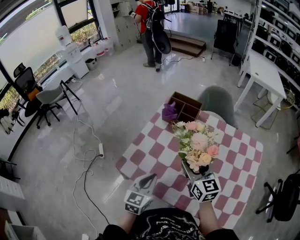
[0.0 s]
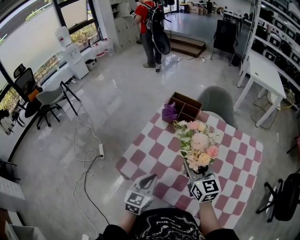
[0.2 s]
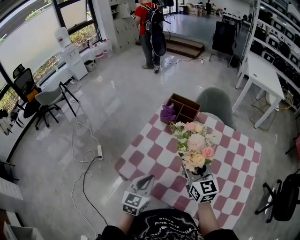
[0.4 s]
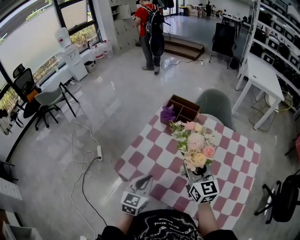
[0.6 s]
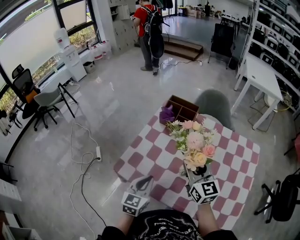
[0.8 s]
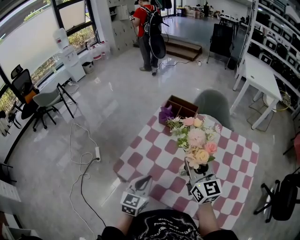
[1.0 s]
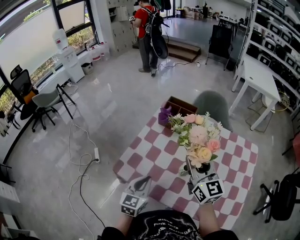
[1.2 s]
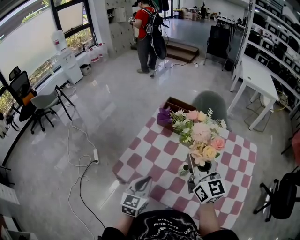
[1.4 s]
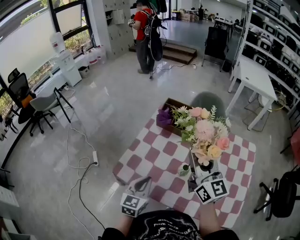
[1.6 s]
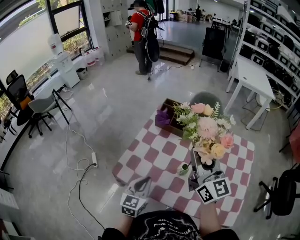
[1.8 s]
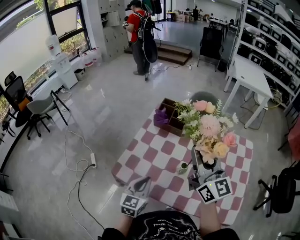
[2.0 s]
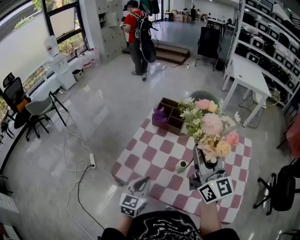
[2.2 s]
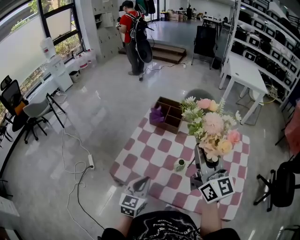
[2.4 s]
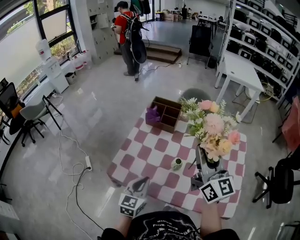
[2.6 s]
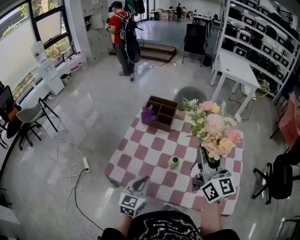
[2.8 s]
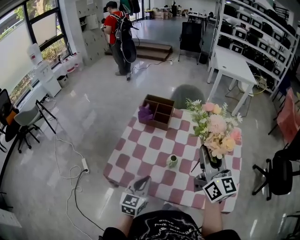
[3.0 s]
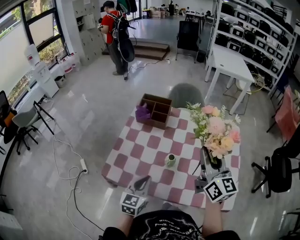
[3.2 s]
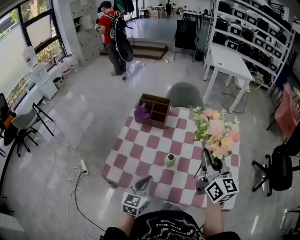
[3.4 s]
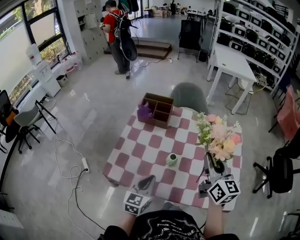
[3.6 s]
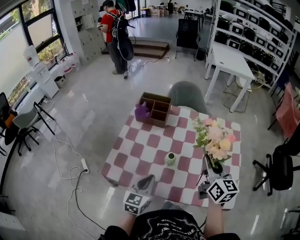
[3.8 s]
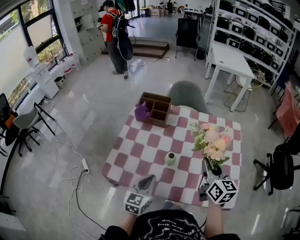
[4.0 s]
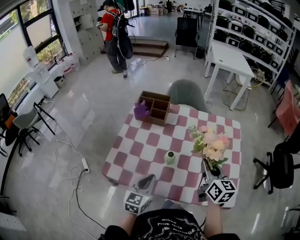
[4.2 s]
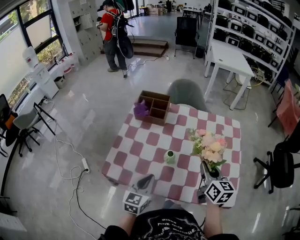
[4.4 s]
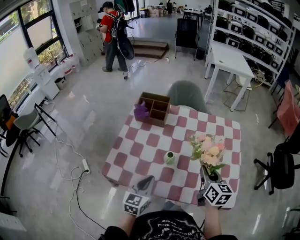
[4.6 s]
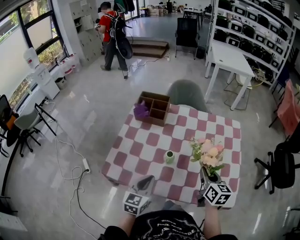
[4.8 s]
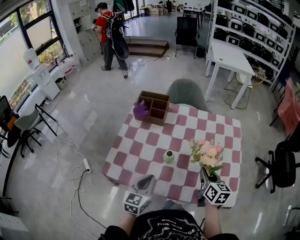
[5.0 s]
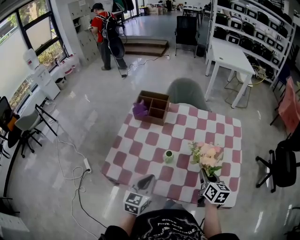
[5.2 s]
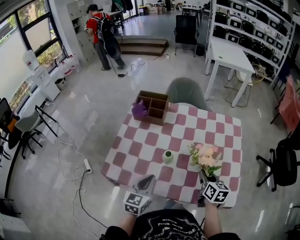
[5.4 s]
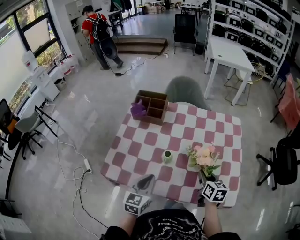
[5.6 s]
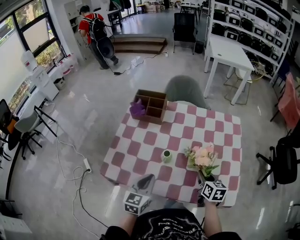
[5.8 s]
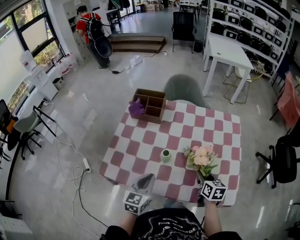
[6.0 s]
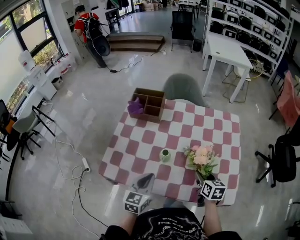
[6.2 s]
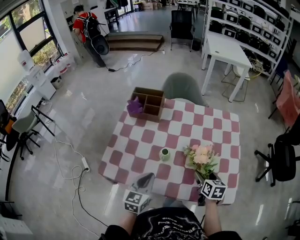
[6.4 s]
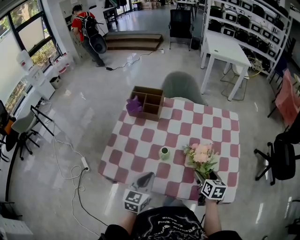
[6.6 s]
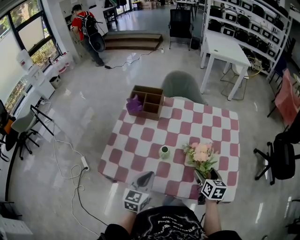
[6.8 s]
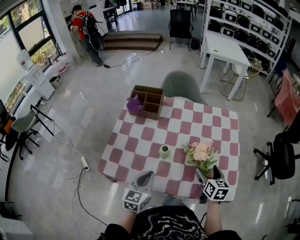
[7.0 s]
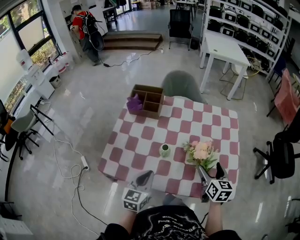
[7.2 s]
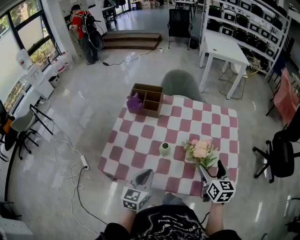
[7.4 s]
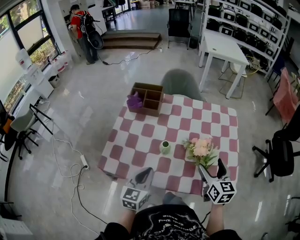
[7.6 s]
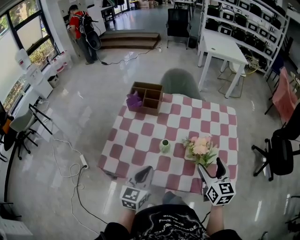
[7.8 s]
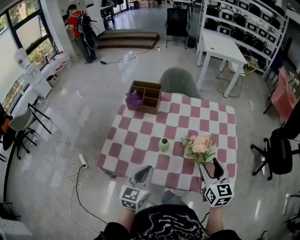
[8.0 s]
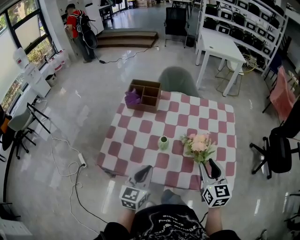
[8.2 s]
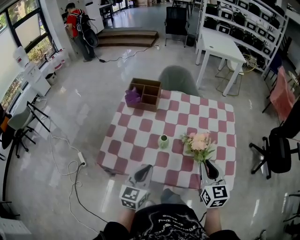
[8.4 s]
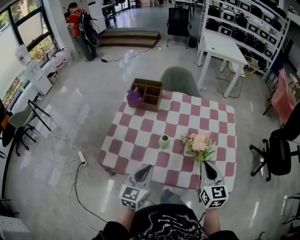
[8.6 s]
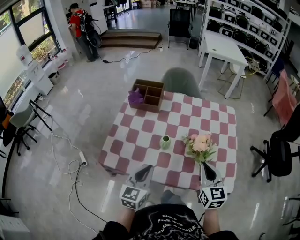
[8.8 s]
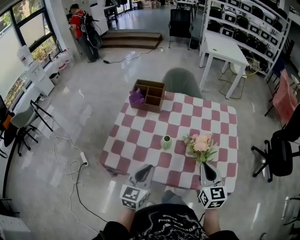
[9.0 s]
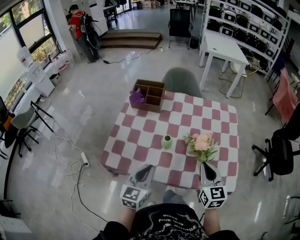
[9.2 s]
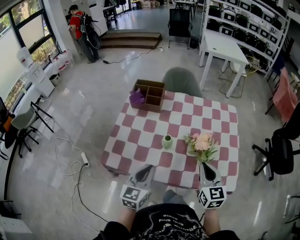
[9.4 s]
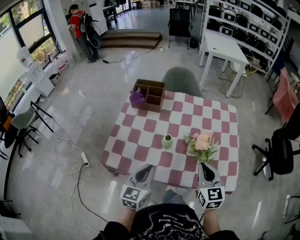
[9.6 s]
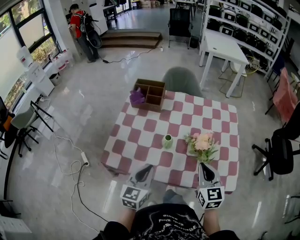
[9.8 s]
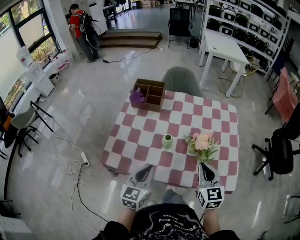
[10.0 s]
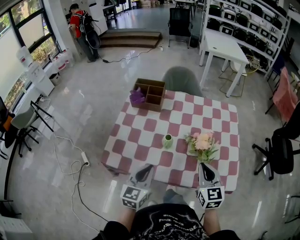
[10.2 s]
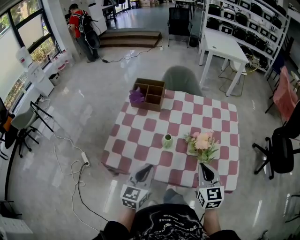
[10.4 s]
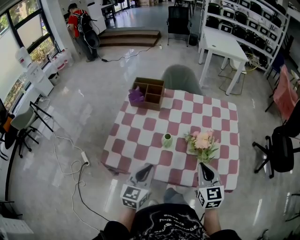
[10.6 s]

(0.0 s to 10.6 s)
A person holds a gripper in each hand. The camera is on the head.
0.0 s - 1.6 s: The right gripper is displaced upward by about 15 cm, and closes its fingers.
1.6 s - 3.0 s: The right gripper shifts approximately 10 cm to the right.
3.0 s - 4.6 s: The right gripper goes roughly 20 cm downward and to the right, and turns by roughly 30 degrees.
4.6 s - 6.0 s: The right gripper goes some 10 cm downward.
6.0 s - 7.6 s: The right gripper is displaced upward by about 10 cm, rotates approximately 20 degrees, and opens.
7.6 s - 9.0 s: The right gripper shifts by about 5 cm, and closes up.
9.0 s - 10.6 s: The grippers make only small movements.

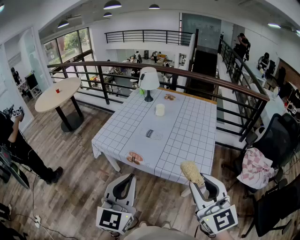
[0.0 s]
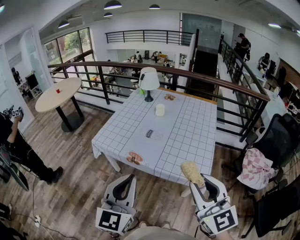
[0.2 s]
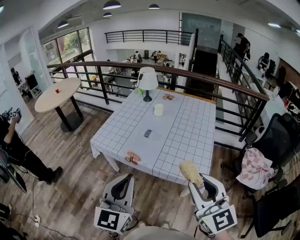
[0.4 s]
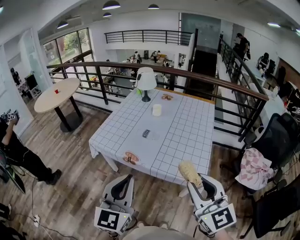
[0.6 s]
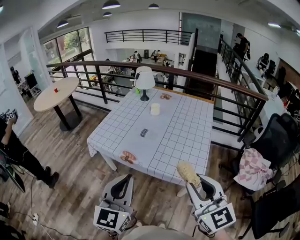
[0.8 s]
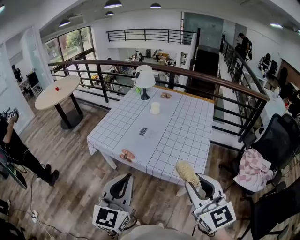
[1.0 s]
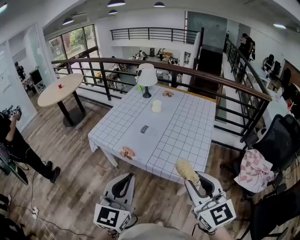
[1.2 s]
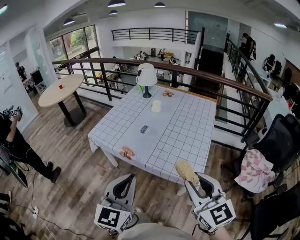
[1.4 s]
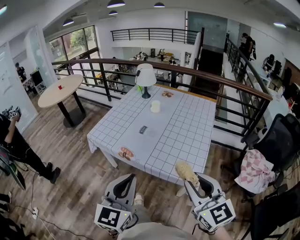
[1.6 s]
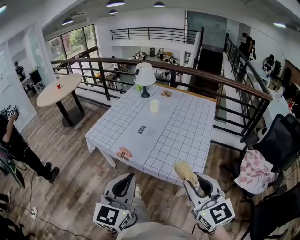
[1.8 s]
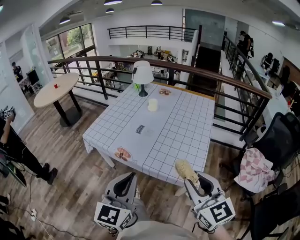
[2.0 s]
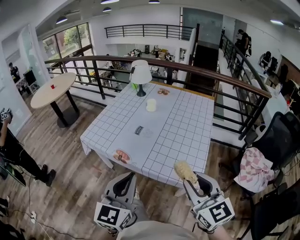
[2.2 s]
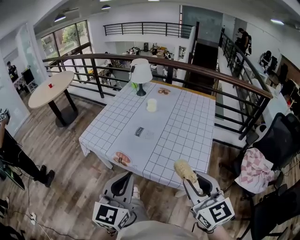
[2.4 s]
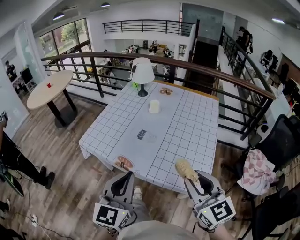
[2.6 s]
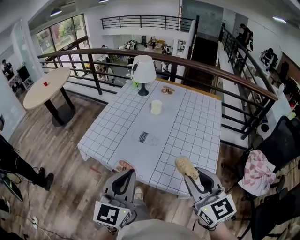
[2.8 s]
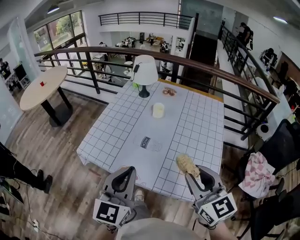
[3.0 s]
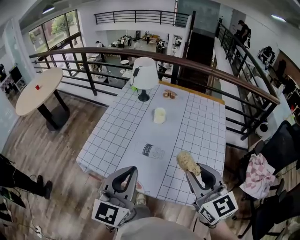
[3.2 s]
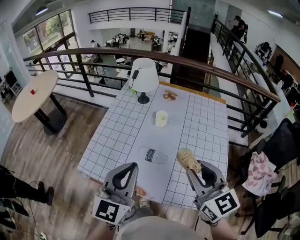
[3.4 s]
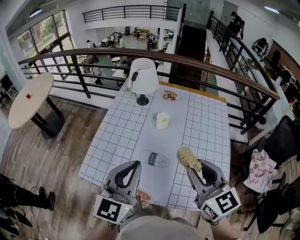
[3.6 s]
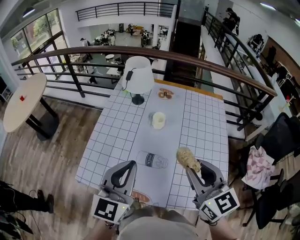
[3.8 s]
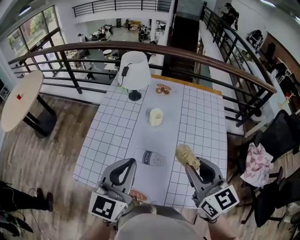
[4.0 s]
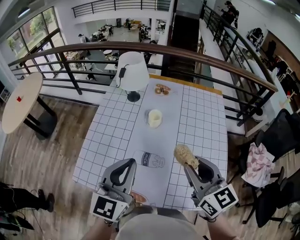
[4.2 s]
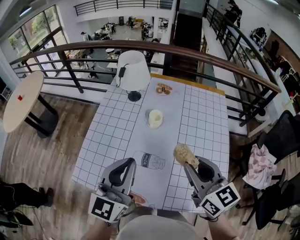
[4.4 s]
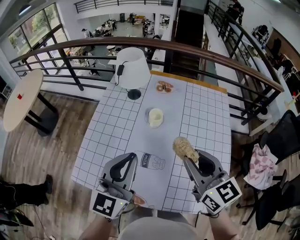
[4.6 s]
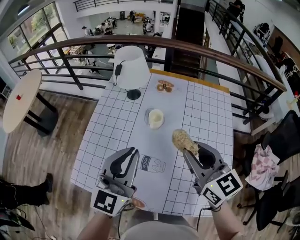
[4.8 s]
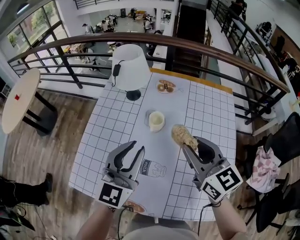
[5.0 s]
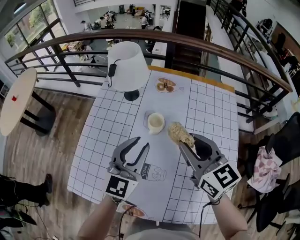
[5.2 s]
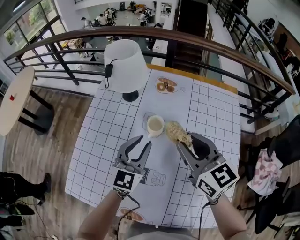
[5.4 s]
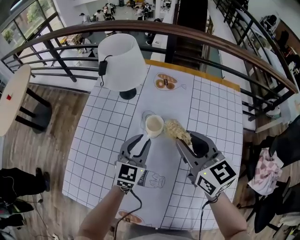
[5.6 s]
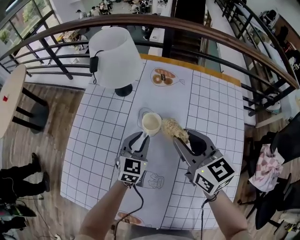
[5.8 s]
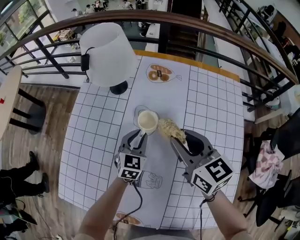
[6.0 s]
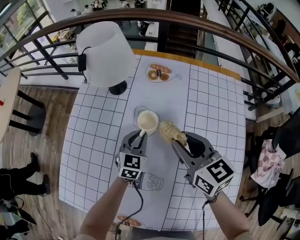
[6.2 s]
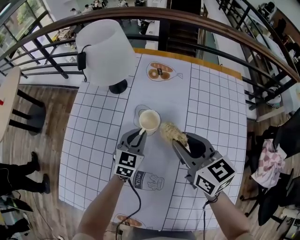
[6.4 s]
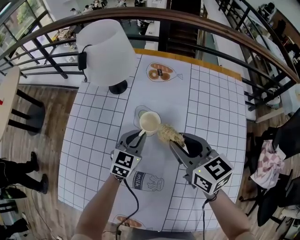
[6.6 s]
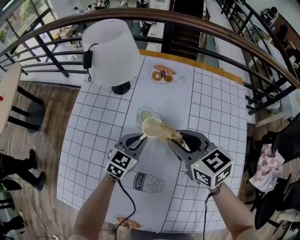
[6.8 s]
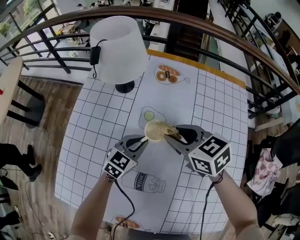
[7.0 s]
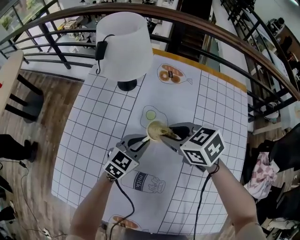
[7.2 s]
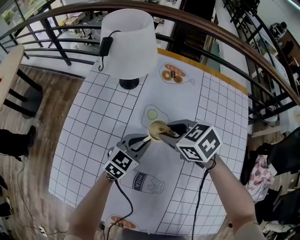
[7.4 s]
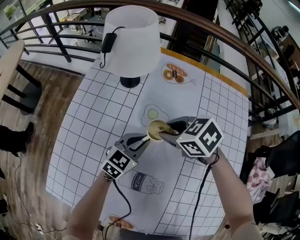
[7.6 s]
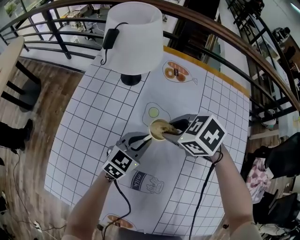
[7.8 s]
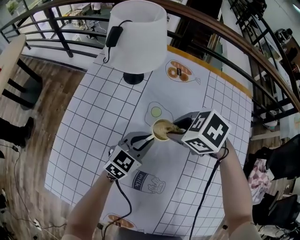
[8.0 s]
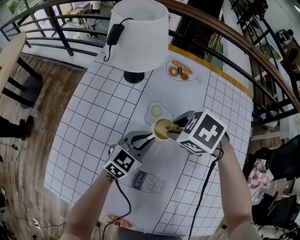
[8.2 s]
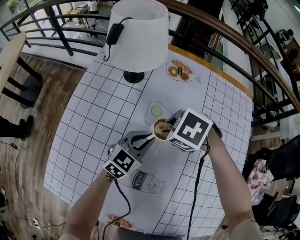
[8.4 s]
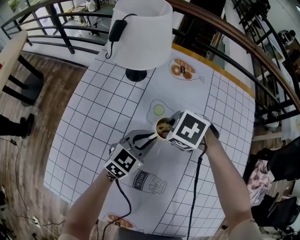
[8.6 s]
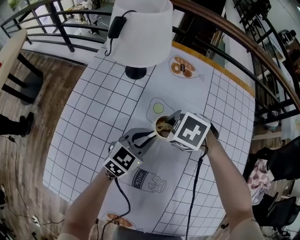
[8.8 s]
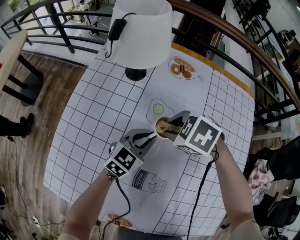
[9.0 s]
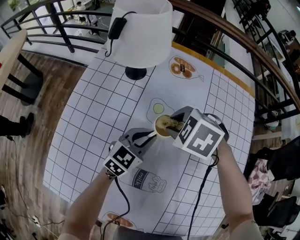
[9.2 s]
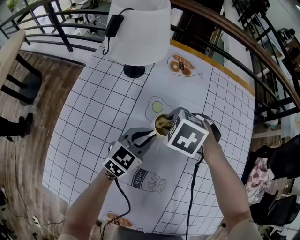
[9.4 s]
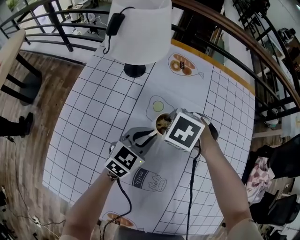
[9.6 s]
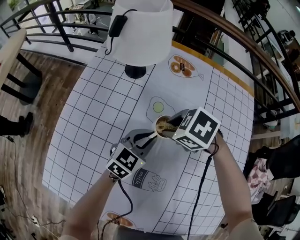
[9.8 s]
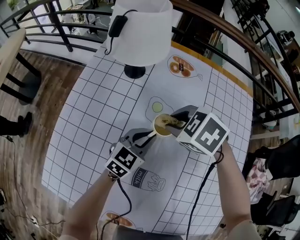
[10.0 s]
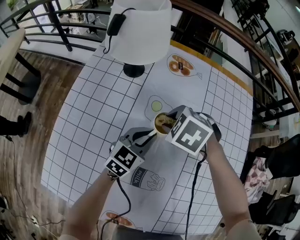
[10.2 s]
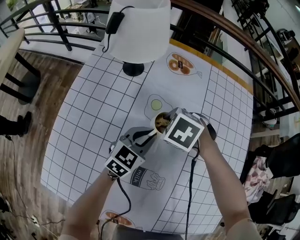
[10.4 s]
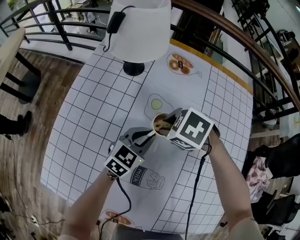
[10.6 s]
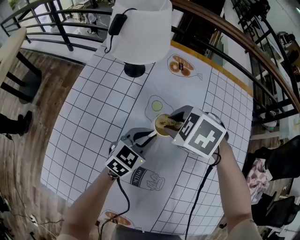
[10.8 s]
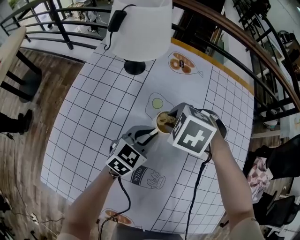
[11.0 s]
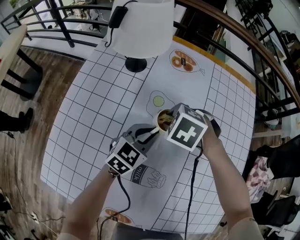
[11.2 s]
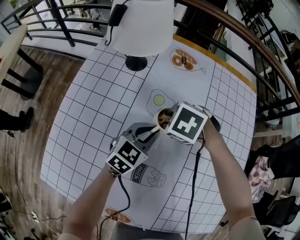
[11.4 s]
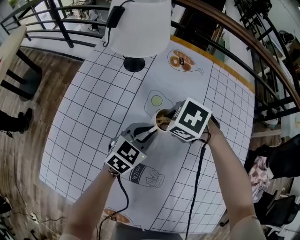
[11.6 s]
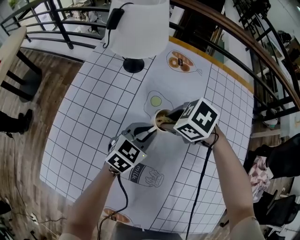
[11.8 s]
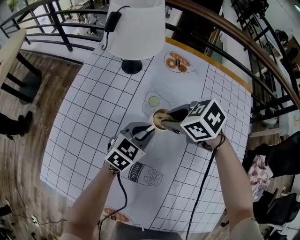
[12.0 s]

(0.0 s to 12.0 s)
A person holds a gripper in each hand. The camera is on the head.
0.0 s - 1.6 s: The left gripper travels to the right by some 10 cm; the right gripper goes about 10 cm to the right and downward.
1.6 s - 3.0 s: The left gripper shifts approximately 25 cm forward. The right gripper shifts roughly 25 cm forward and to the left.
3.0 s - 4.4 s: Both grippers travel together forward, roughly 20 cm.
4.4 s - 6.0 s: The left gripper is displaced downward and forward by about 40 cm, and angles its fingers downward, by approximately 30 degrees, while the right gripper travels forward and downward by some 30 cm.
6.0 s - 7.6 s: The right gripper is displaced downward and to the left by some 15 cm, and angles its fingers downward, by approximately 40 degrees. Meanwhile the left gripper changes its angle by roughly 20 degrees.
7.6 s - 9.0 s: The right gripper rotates some 20 degrees.
9.0 s - 10.4 s: The right gripper goes up and down, approximately 5 cm each way, reversing 2 times.
10.4 s - 12.0 s: The right gripper goes up and down, approximately 5 cm each way, reversing 2 times, and rotates roughly 30 degrees.

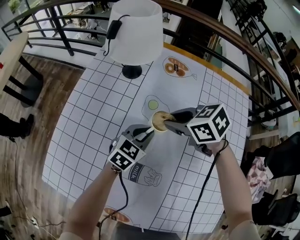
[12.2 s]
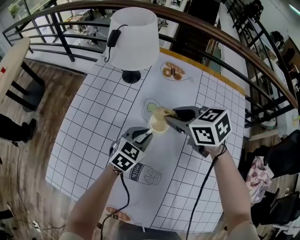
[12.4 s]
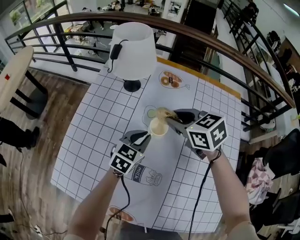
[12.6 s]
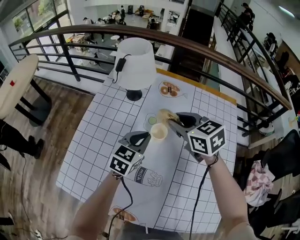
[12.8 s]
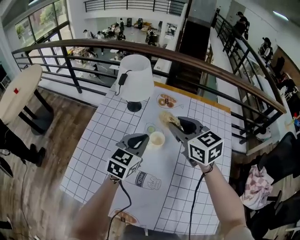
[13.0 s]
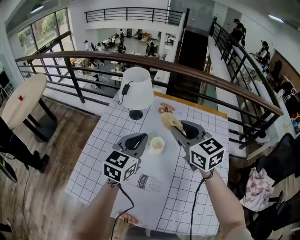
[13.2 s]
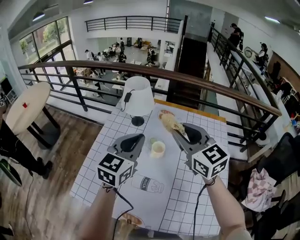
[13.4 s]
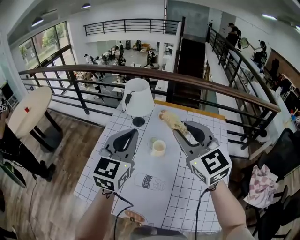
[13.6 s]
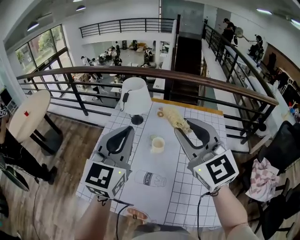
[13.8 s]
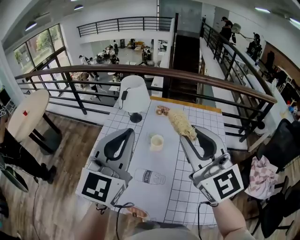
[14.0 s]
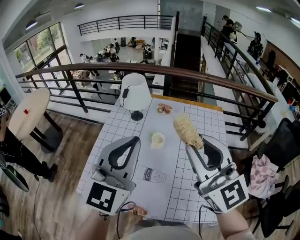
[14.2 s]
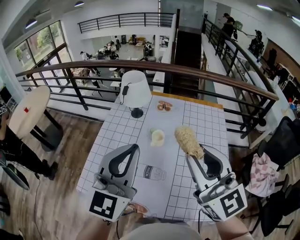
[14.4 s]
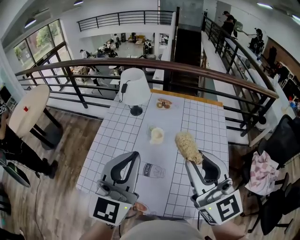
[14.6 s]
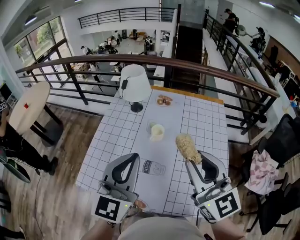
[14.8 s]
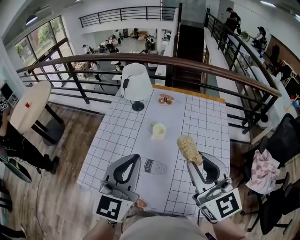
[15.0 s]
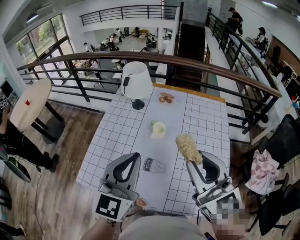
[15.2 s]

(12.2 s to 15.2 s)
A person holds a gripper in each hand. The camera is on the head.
12.2 s - 13.8 s: The right gripper moves upward and backward, roughly 40 cm, and tips its fingers upward by some 50 degrees; the left gripper heads upward, covering some 50 cm, and tilts its fingers about 30 degrees upward.
13.8 s - 15.2 s: The two grippers go about 10 cm backward and downward.
